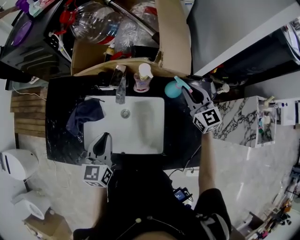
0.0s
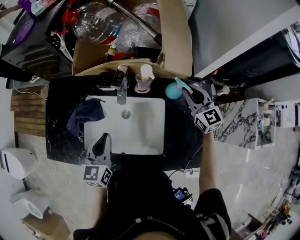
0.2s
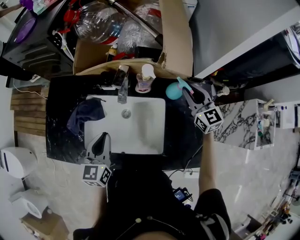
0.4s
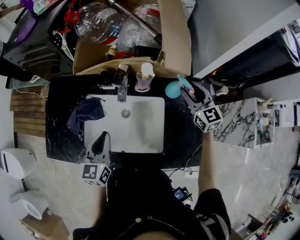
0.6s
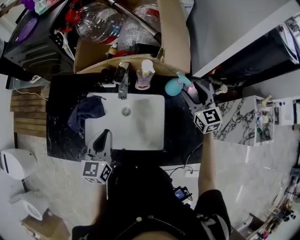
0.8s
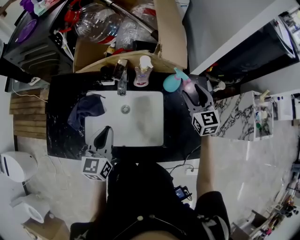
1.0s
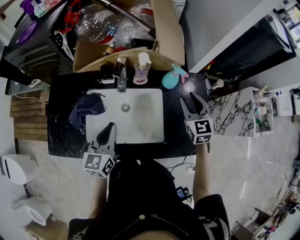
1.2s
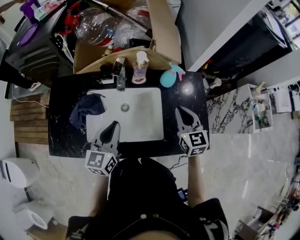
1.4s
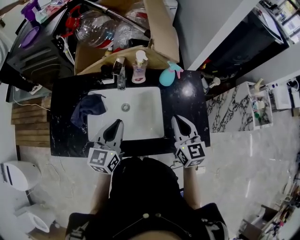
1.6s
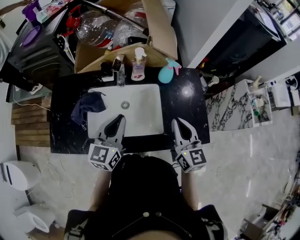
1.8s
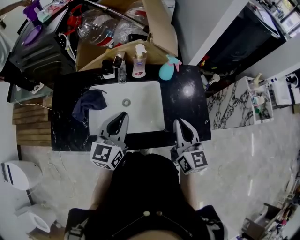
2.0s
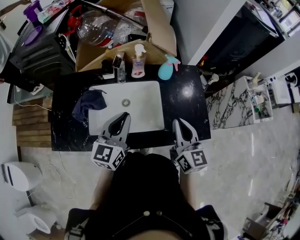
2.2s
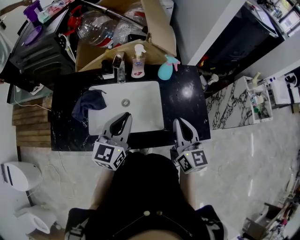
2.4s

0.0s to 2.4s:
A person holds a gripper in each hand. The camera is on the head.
0.0s to 1.2s: The right gripper goes approximately 10 cm backward, turns by approximately 20 degrees, and opens its fingers.
1.2s to 2.4s: The left gripper shifts approximately 10 cm to the right and upward. The right gripper moves backward, some 20 cm, changes its angle by about 30 degrees, and closes up.

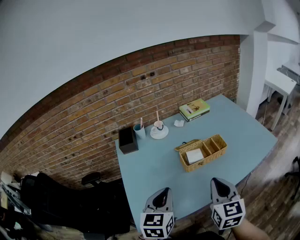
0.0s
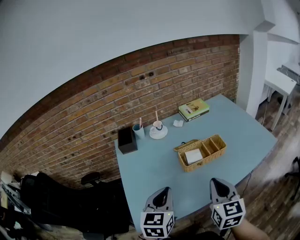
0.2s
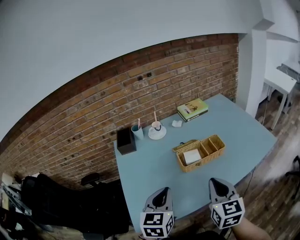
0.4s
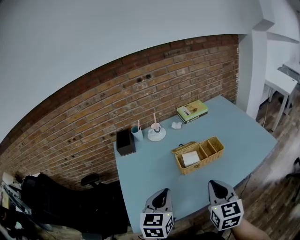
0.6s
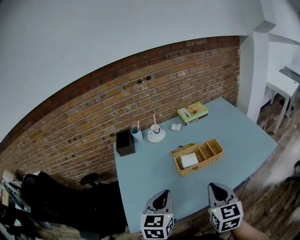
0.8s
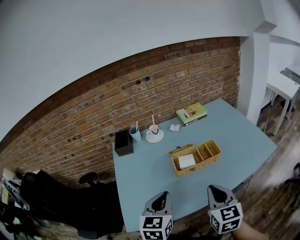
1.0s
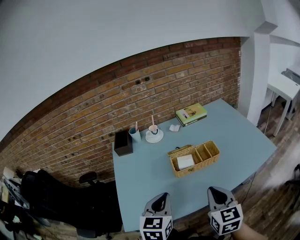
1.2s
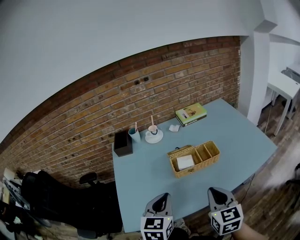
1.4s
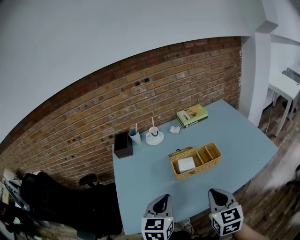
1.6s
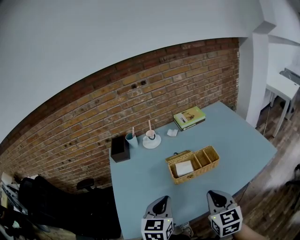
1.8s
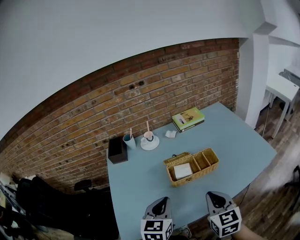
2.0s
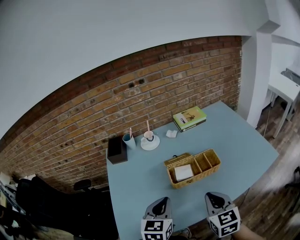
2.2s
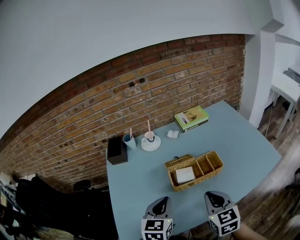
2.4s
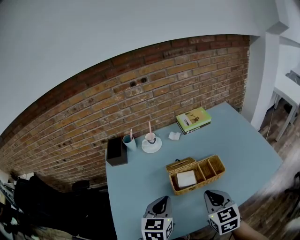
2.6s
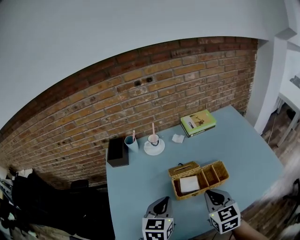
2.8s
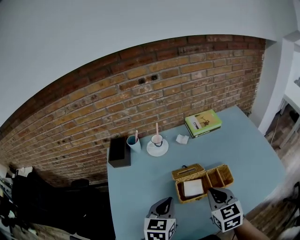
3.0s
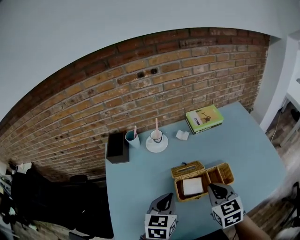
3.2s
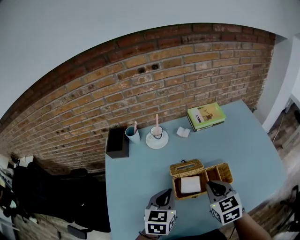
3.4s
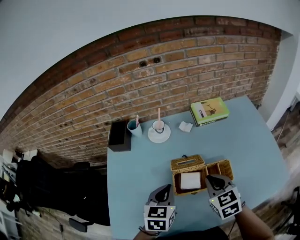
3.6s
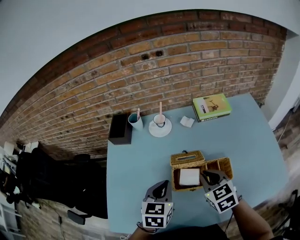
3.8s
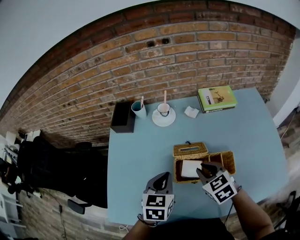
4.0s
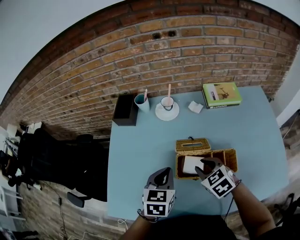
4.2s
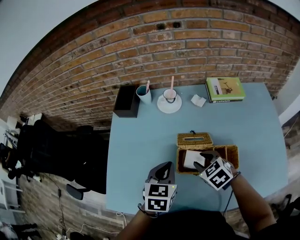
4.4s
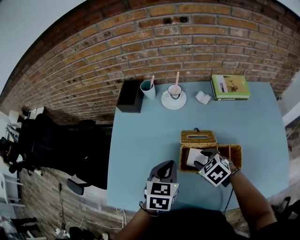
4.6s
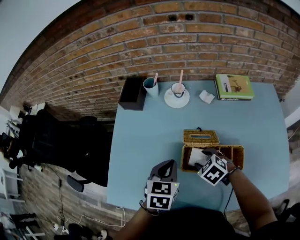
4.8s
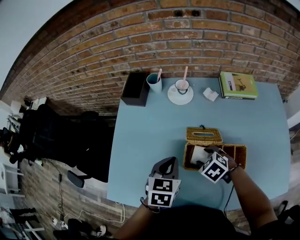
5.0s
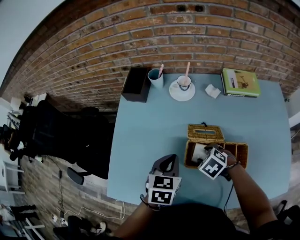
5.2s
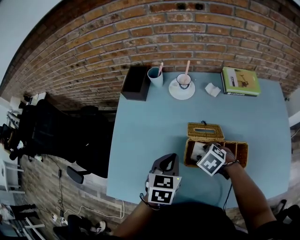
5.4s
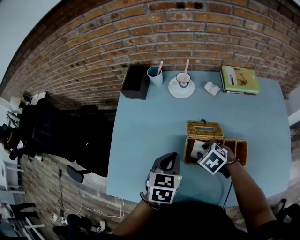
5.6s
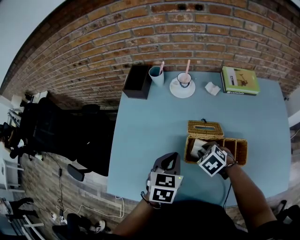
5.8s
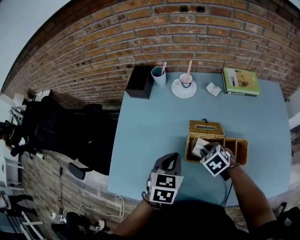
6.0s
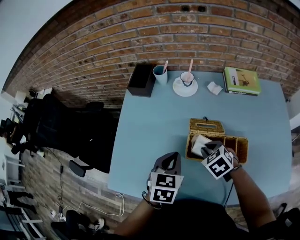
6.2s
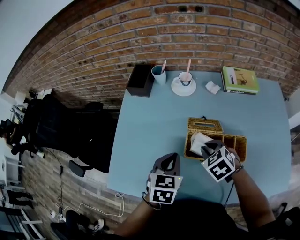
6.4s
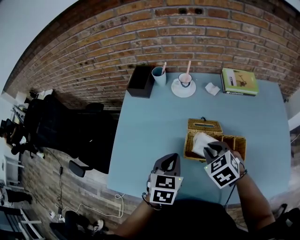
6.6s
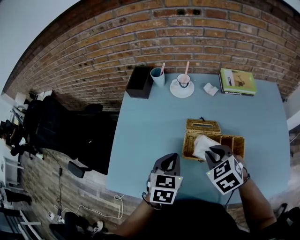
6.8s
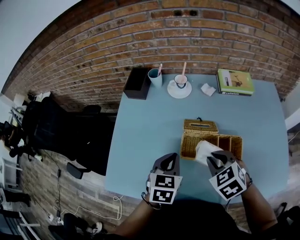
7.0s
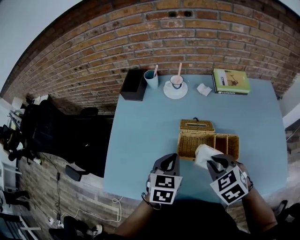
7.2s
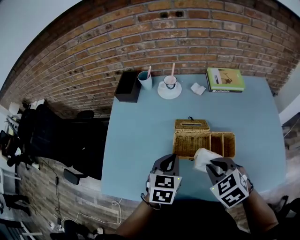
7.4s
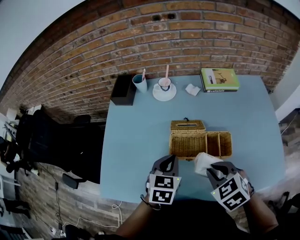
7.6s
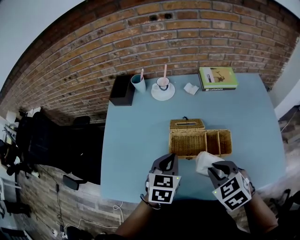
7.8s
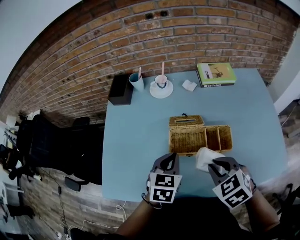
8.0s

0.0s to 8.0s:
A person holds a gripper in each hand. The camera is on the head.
0.0s to 1.6s: Both grippers move to the right, approximately 5 cm.
1.6s to 3.2s: Both grippers travel together forward, some 20 cm.
3.2s to 4.8s: The right gripper heads downward, covering approximately 15 cm, tilts its fingers approximately 30 degrees downward, and opens up.
4.8s to 6.4s: The right gripper is displaced upward by about 5 cm, and closes its fingers.
6.4s to 8.0s: The left gripper moves to the right, about 5 cm. Meanwhile the right gripper heads backward, upward and to the right, covering some 15 cm.

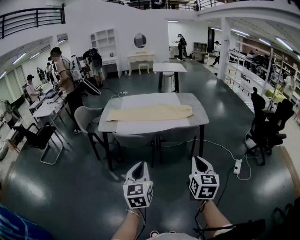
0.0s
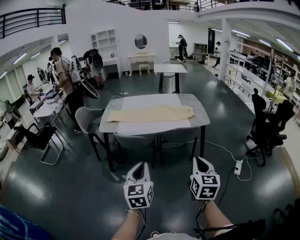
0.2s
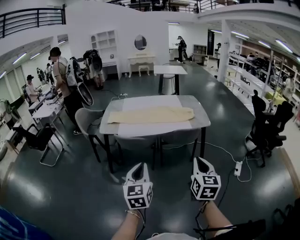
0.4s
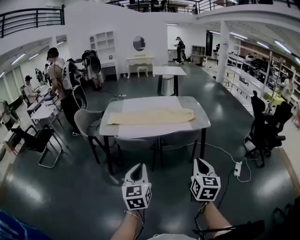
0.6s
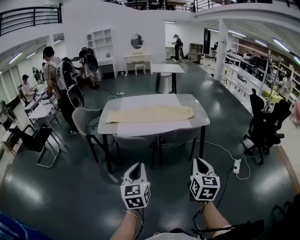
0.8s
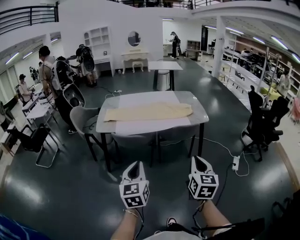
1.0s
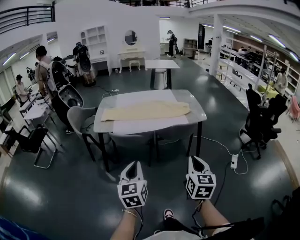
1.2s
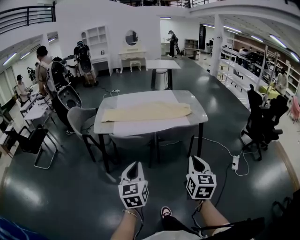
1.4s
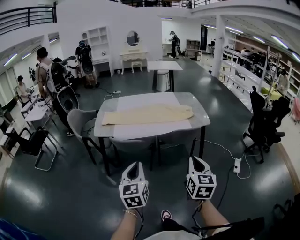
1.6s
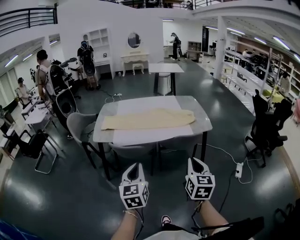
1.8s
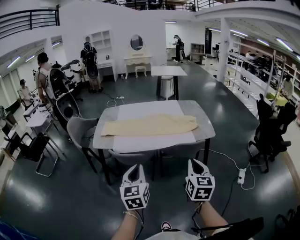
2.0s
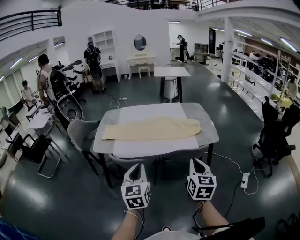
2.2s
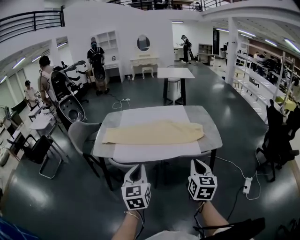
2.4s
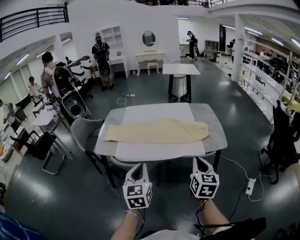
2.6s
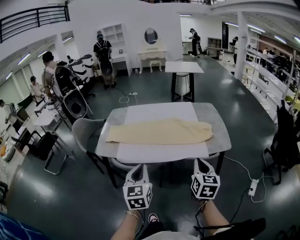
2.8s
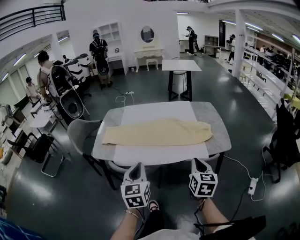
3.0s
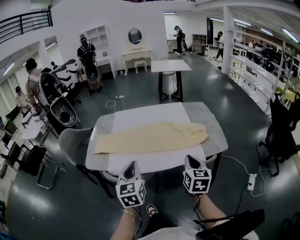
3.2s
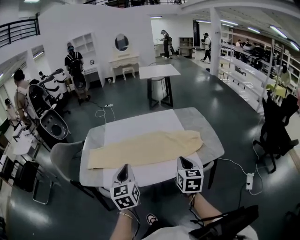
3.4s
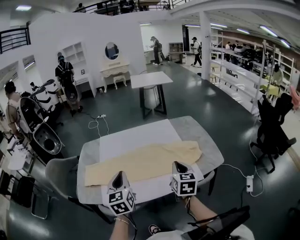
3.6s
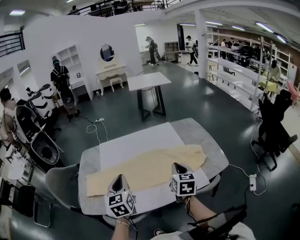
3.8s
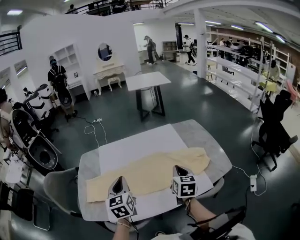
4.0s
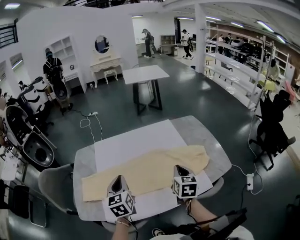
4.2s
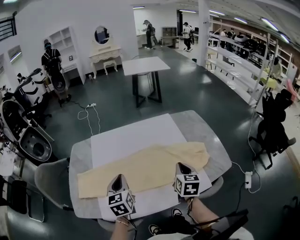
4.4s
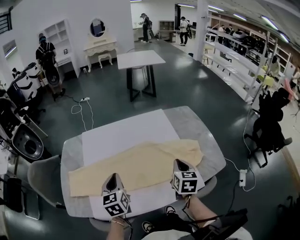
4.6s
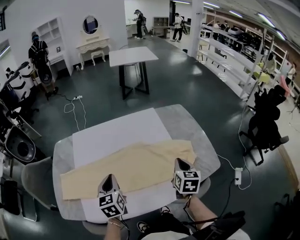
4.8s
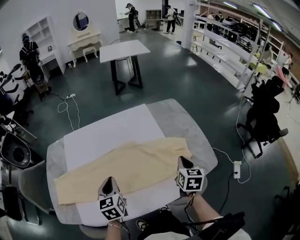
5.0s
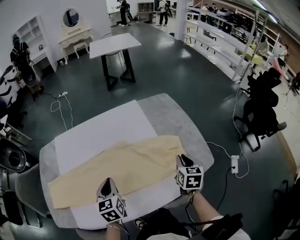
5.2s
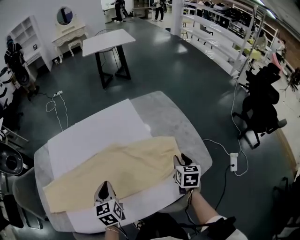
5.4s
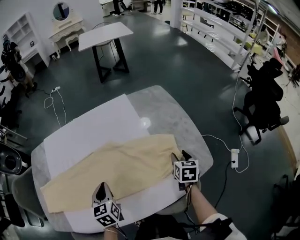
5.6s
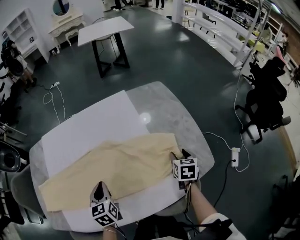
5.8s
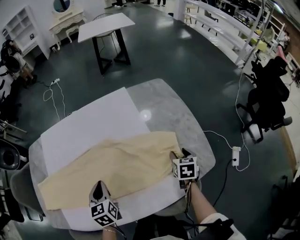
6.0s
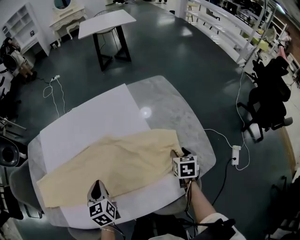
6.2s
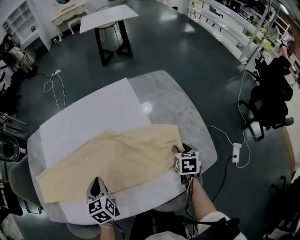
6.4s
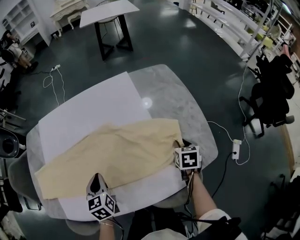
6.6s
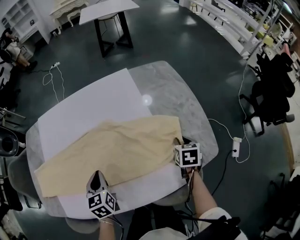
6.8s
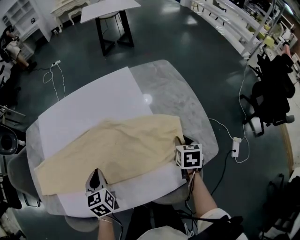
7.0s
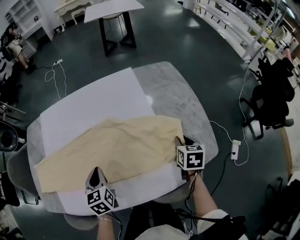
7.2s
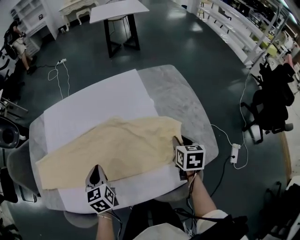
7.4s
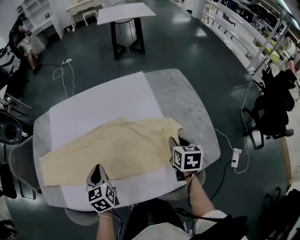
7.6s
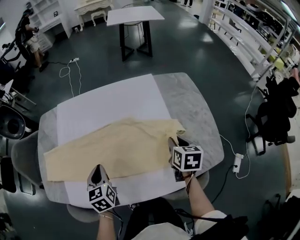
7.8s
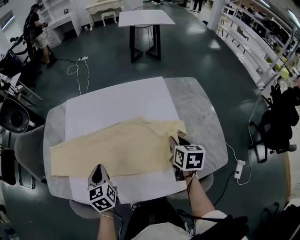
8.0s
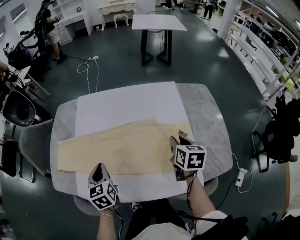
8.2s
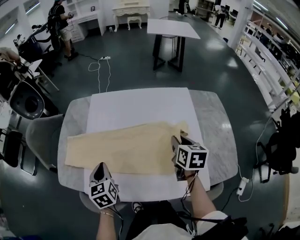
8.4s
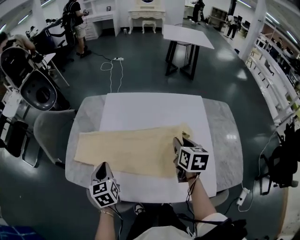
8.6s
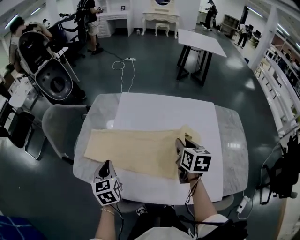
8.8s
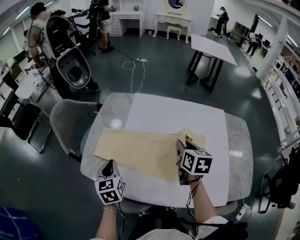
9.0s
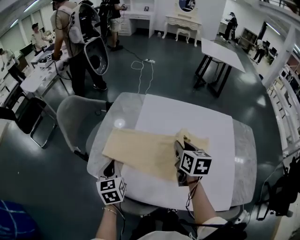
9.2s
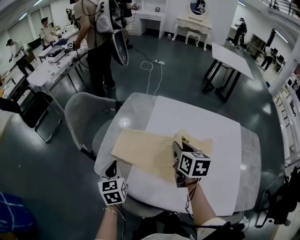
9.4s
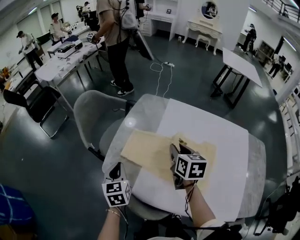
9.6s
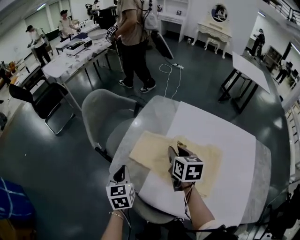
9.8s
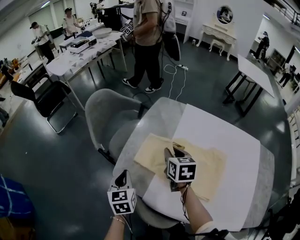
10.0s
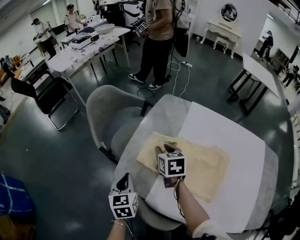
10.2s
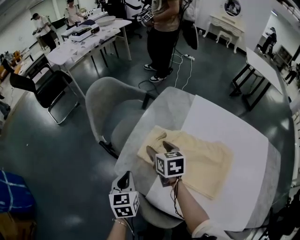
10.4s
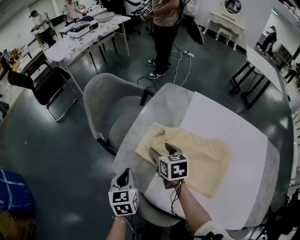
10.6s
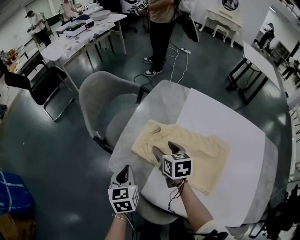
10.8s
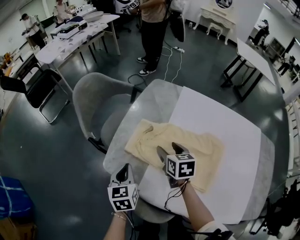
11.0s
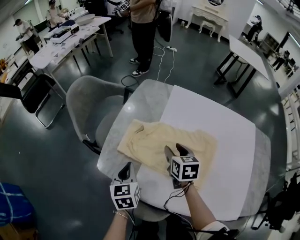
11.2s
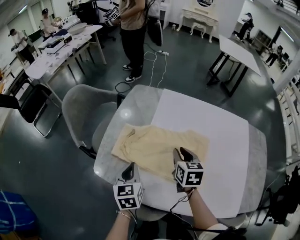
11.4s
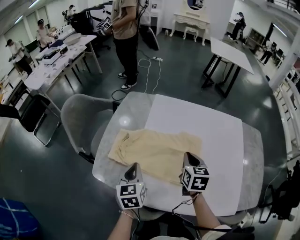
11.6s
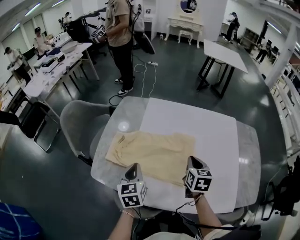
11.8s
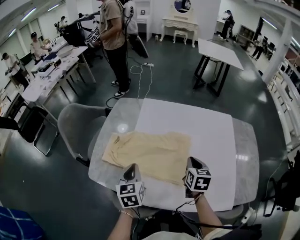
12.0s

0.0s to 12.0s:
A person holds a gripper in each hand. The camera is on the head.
0.0s to 1.6s: Both grippers move forward and to the left, roughly 10 cm.
1.6s to 3.0s: The grippers both shift forward by roughly 35 cm.
3.0s to 4.4s: Both grippers travel together forward, roughly 35 cm.
4.4s to 6.0s: The left gripper heads downward, to the right and forward, covering roughly 25 cm. Meanwhile the right gripper goes approximately 40 cm to the right, downward and forward, rotates some 20 degrees, and opens its fingers.
6.0s to 7.6s: The right gripper moves to the left and upward, about 10 cm, and closes its fingers, while the left gripper moves to the left, roughly 5 cm.
7.6s to 9.0s: The two grippers go roughly 40 cm to the left. The left gripper turns by about 20 degrees. Meanwhile the right gripper rotates about 30 degrees.
9.0s to 10.4s: The right gripper is displaced to the left and forward by about 40 cm, rotates roughly 30 degrees, and opens its fingers. The left gripper travels to the left and downward by roughly 20 cm.
10.4s to 12.0s: The left gripper changes place by about 25 cm. Meanwhile the right gripper changes place by about 40 cm, swivels approximately 40 degrees, and closes its fingers.

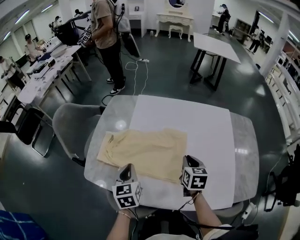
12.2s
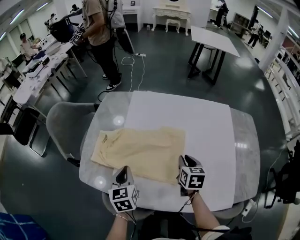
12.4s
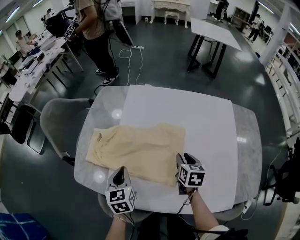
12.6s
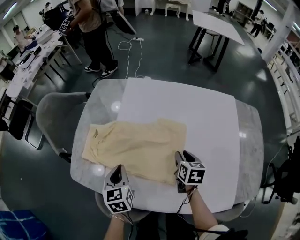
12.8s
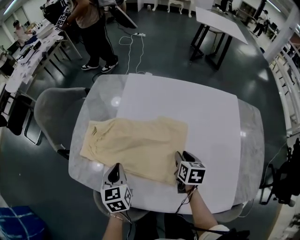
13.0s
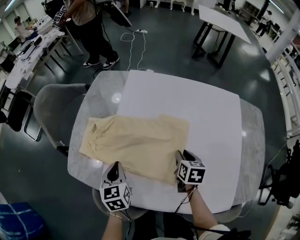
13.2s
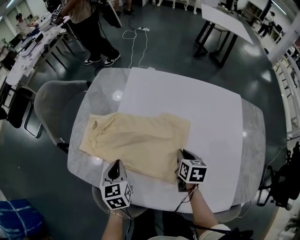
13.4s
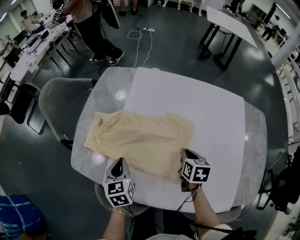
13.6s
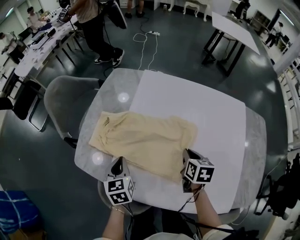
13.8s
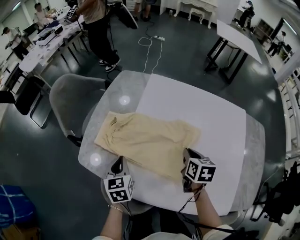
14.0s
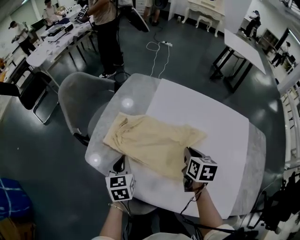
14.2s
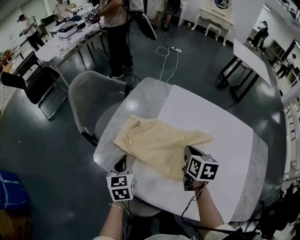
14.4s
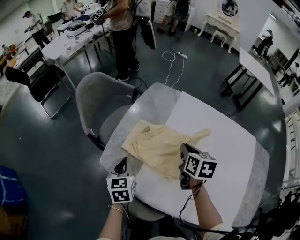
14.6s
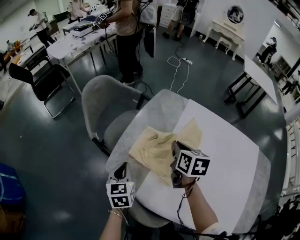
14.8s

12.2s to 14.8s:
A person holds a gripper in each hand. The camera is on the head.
12.2s to 13.4s: The grippers both shift downward by roughly 10 cm.
13.4s to 14.8s: The left gripper travels to the left by roughly 20 cm, while the right gripper shifts approximately 35 cm to the left, upward and forward, and changes its angle by about 20 degrees.
